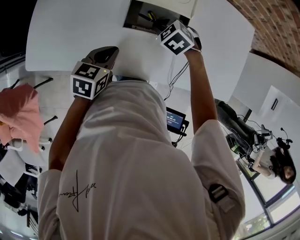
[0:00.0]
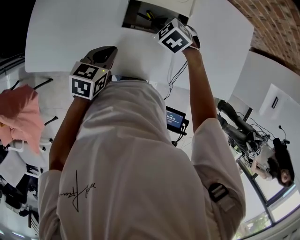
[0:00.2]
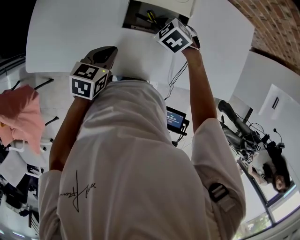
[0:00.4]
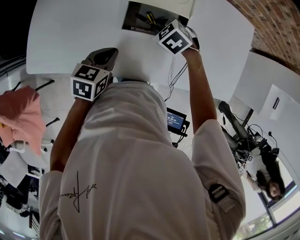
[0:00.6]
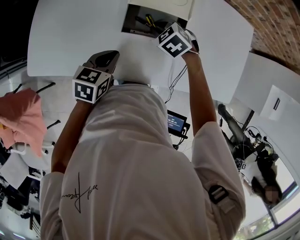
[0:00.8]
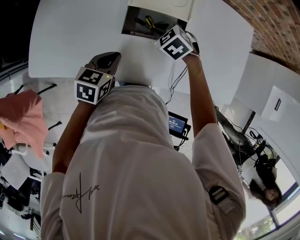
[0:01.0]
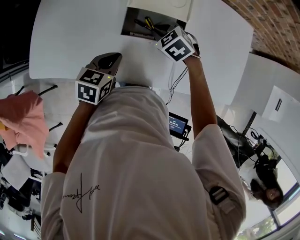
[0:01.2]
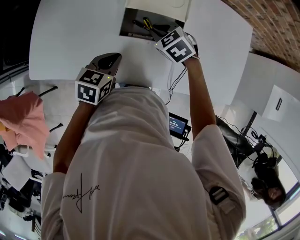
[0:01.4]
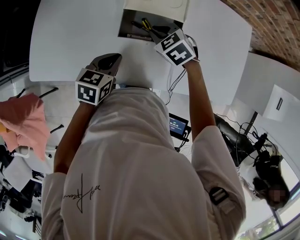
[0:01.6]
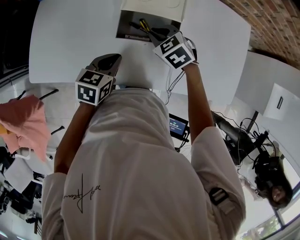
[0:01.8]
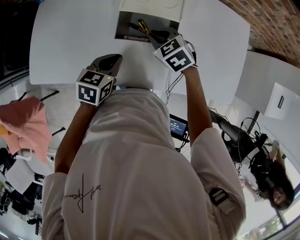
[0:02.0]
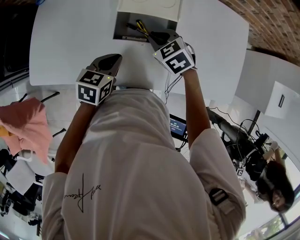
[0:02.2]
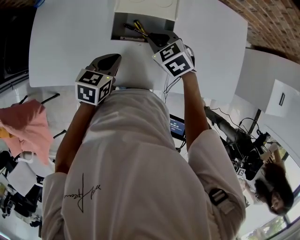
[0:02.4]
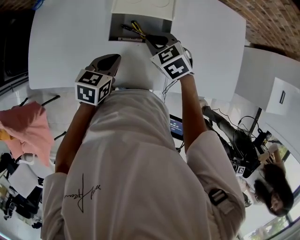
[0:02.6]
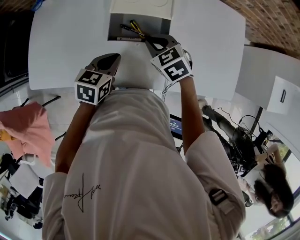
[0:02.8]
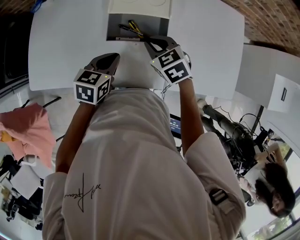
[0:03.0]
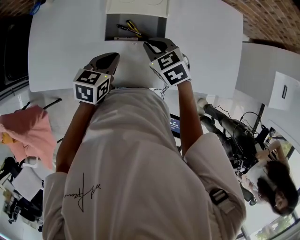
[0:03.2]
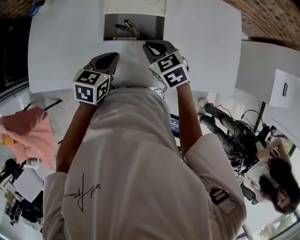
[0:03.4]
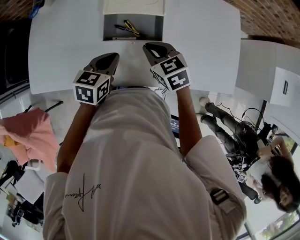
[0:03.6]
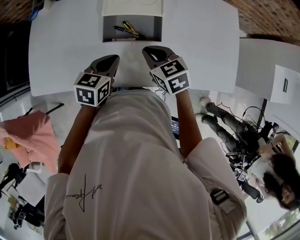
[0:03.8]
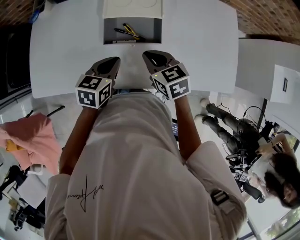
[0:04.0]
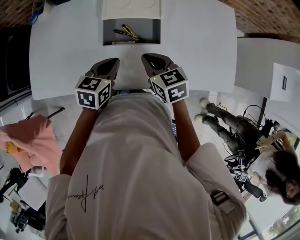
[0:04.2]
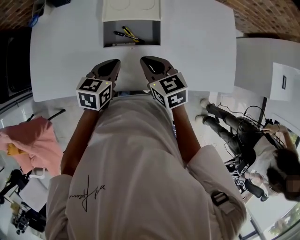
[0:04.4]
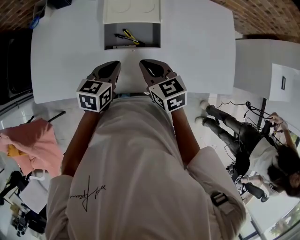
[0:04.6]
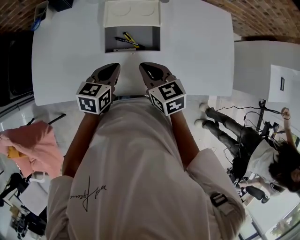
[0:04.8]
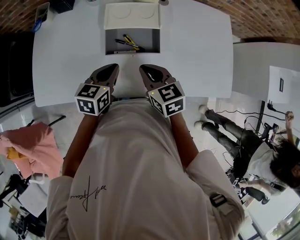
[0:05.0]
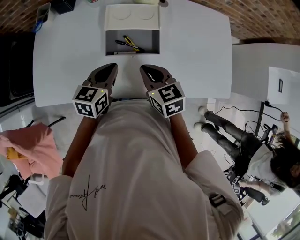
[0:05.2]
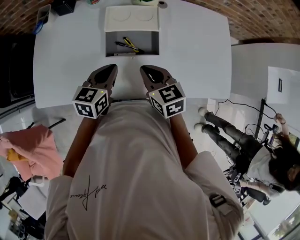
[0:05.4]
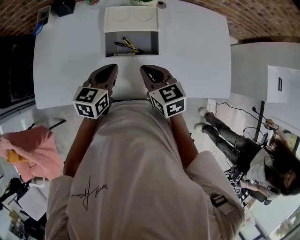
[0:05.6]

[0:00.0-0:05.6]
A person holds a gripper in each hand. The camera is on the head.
0:00.0 to 0:01.4: The grippers move only a little.
0:01.4 to 0:02.8: The right gripper ends up about 5 cm from where it was.
0:02.8 to 0:04.2: The right gripper goes roughly 5 cm backward, and turns by roughly 20 degrees.
0:04.2 to 0:05.6: The grippers make only small movements.

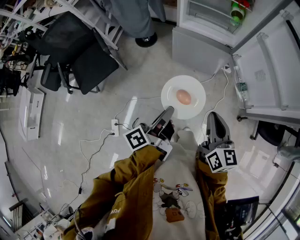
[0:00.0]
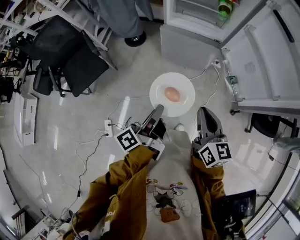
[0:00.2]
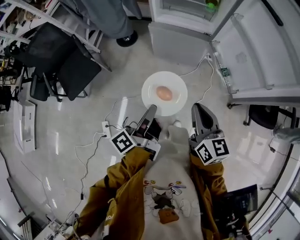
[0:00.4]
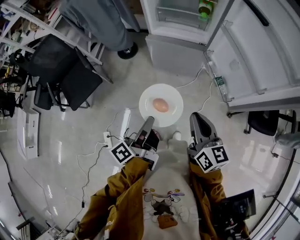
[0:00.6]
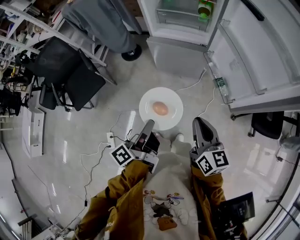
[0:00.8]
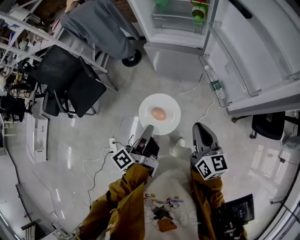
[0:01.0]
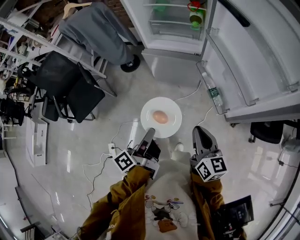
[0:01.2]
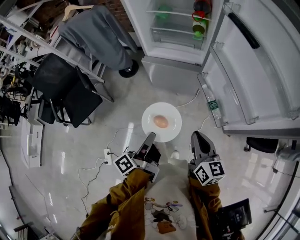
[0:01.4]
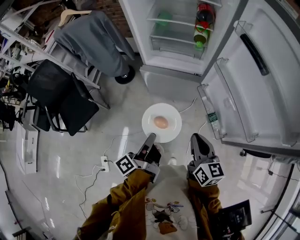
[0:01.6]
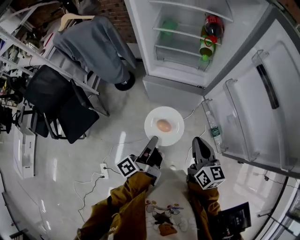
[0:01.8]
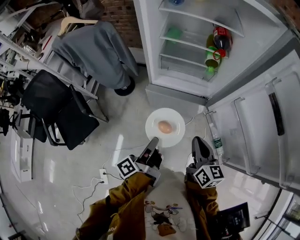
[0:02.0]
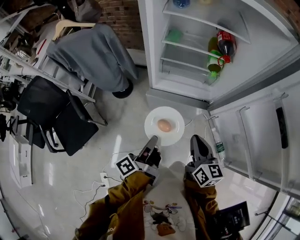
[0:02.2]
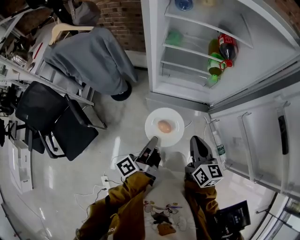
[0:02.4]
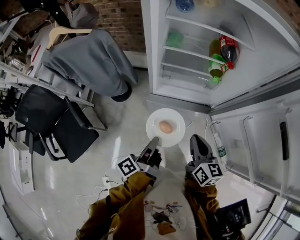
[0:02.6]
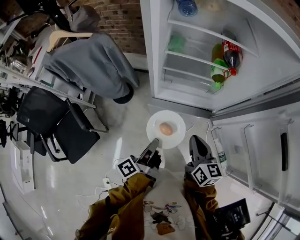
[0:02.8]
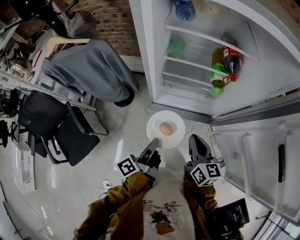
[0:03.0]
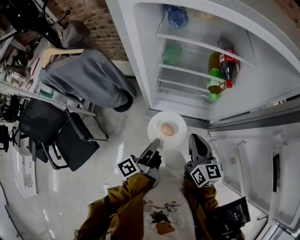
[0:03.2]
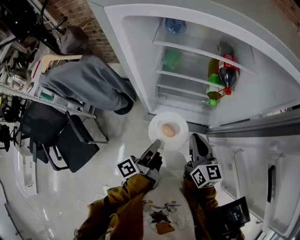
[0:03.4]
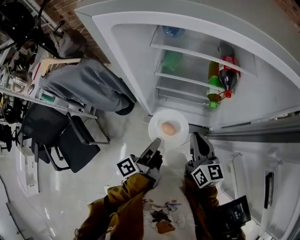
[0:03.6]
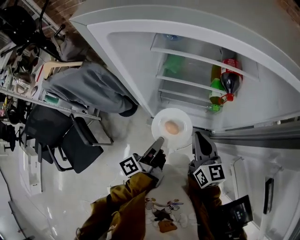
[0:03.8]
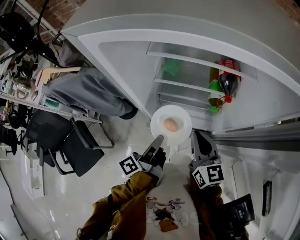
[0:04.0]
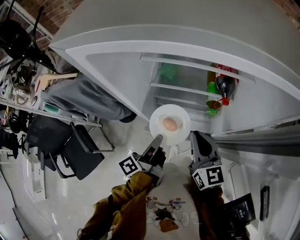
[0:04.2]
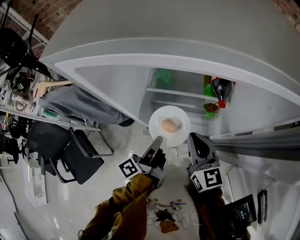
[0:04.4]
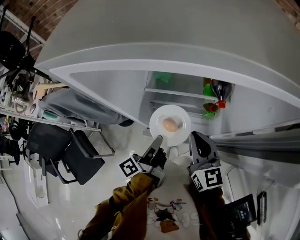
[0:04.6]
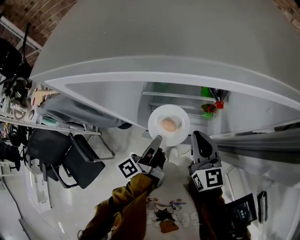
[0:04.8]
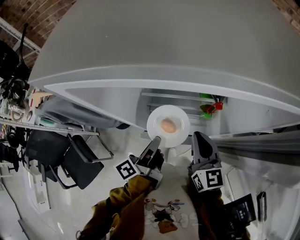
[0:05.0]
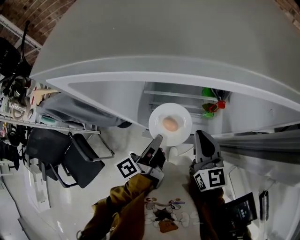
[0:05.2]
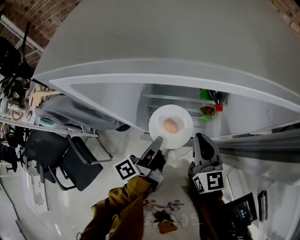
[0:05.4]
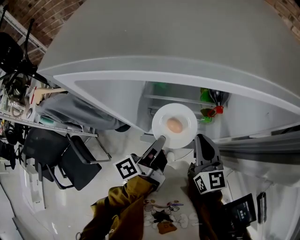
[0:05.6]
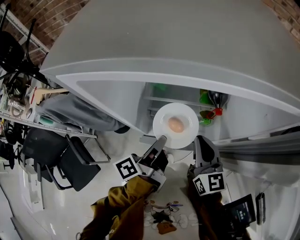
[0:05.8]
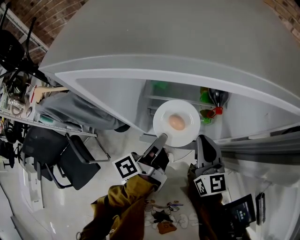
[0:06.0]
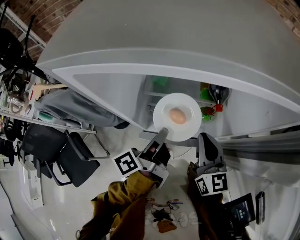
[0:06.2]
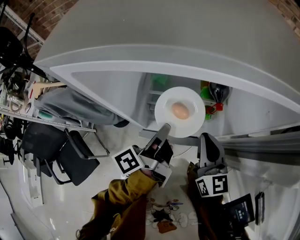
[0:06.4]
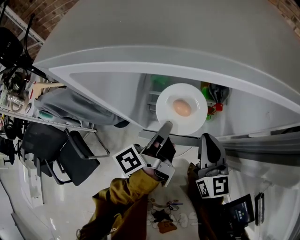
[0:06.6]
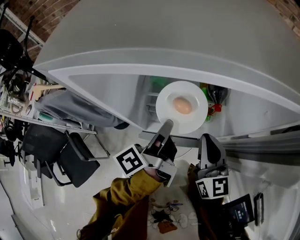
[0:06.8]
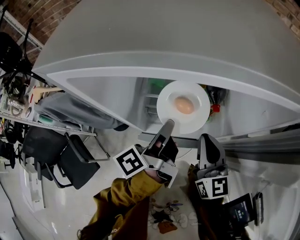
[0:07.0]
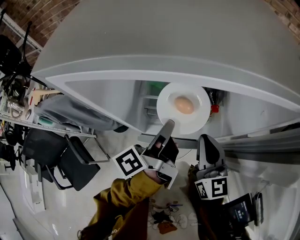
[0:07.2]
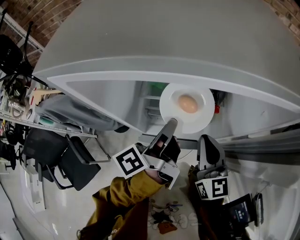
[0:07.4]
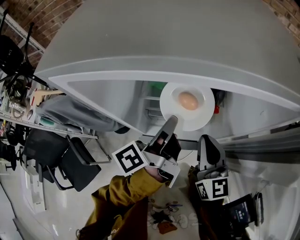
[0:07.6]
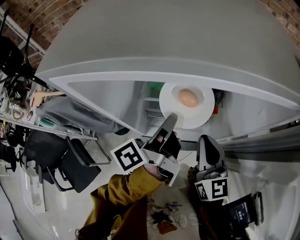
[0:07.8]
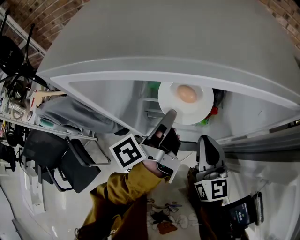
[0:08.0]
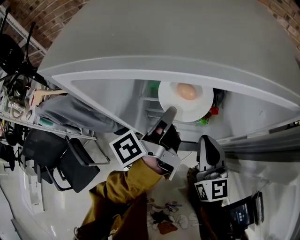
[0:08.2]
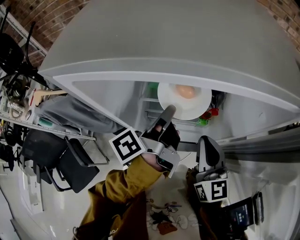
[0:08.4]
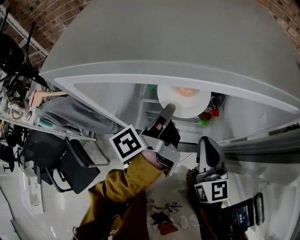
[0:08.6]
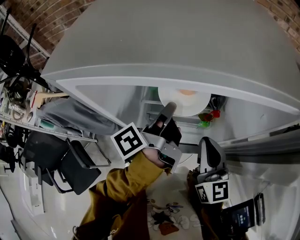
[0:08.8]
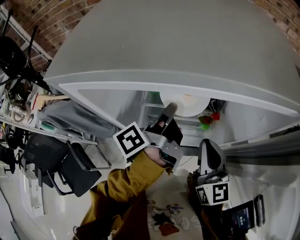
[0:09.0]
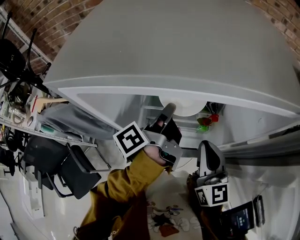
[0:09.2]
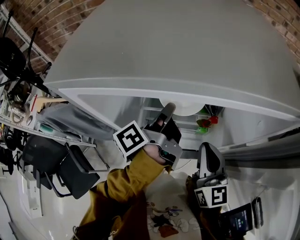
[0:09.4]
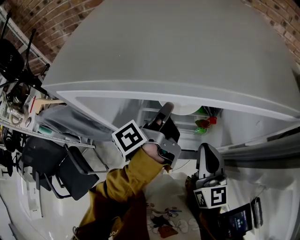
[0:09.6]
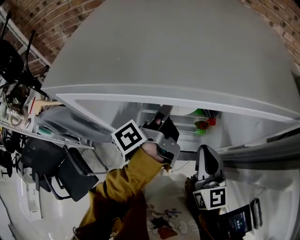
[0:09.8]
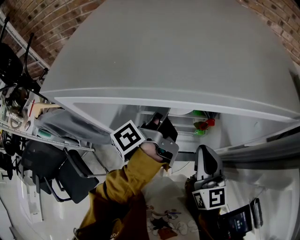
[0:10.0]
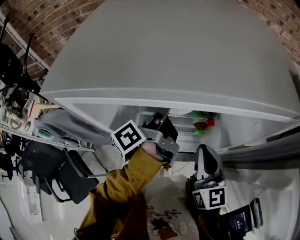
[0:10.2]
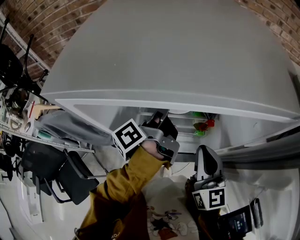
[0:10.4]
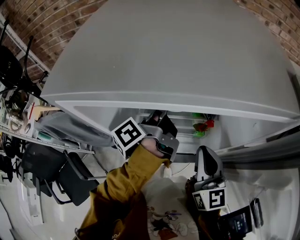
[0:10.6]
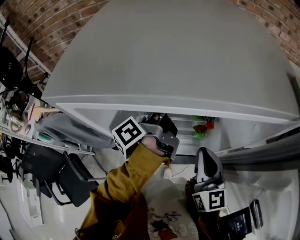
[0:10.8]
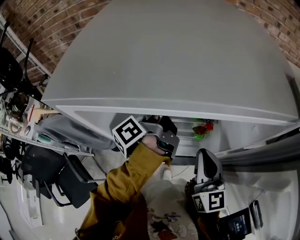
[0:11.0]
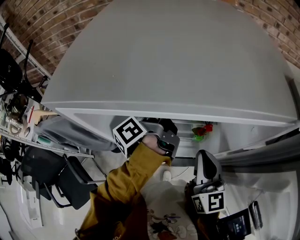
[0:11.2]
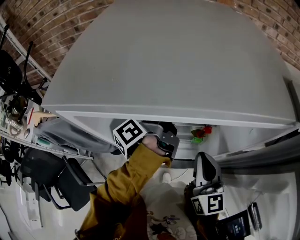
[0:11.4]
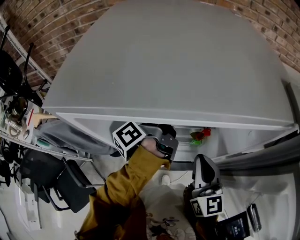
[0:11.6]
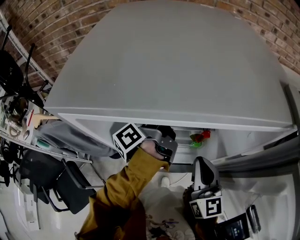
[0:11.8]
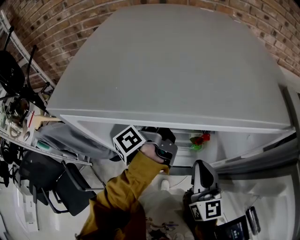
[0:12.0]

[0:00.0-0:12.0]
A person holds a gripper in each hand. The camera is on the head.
0:00.0 to 0:01.6: The right gripper ends up roughly 15 cm from where it was.
0:01.6 to 0:03.0: The right gripper shifts by approximately 30 cm.
0:03.0 to 0:04.4: The right gripper changes place by roughly 15 cm.

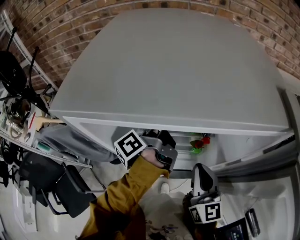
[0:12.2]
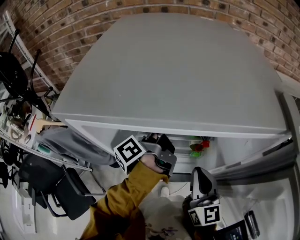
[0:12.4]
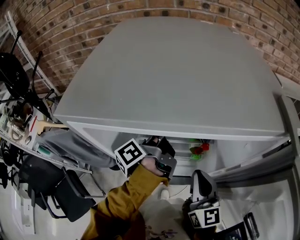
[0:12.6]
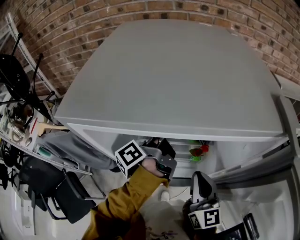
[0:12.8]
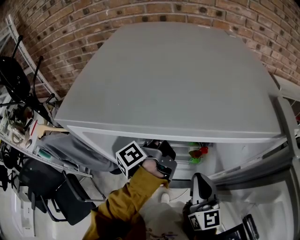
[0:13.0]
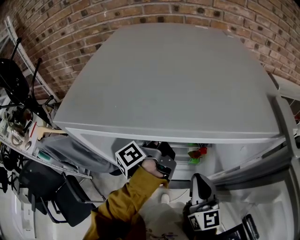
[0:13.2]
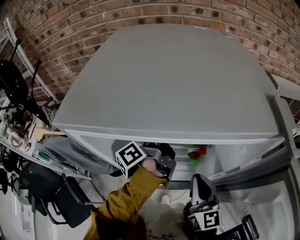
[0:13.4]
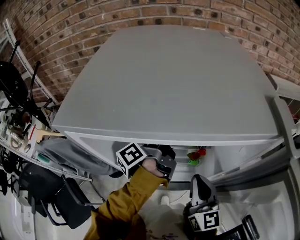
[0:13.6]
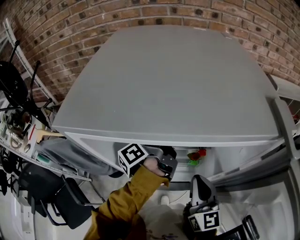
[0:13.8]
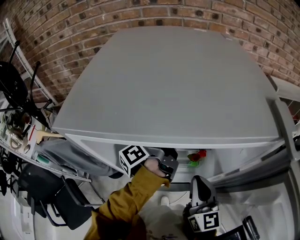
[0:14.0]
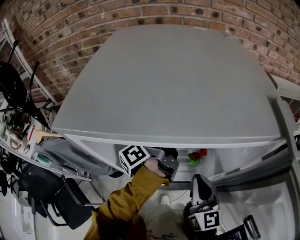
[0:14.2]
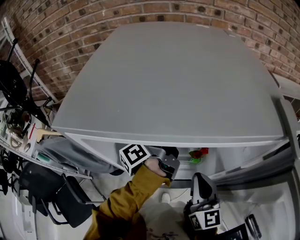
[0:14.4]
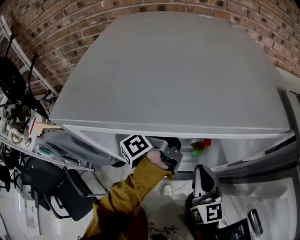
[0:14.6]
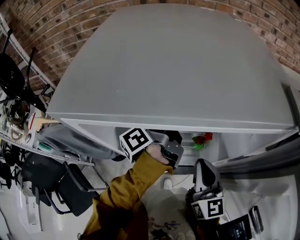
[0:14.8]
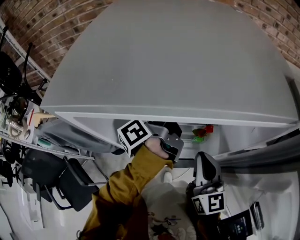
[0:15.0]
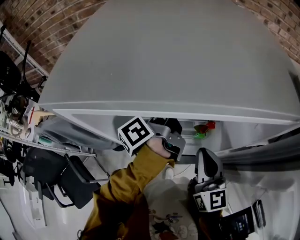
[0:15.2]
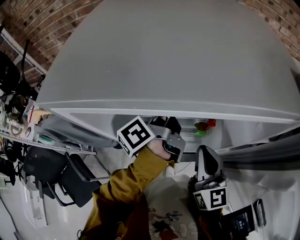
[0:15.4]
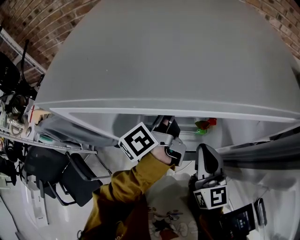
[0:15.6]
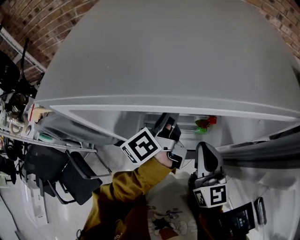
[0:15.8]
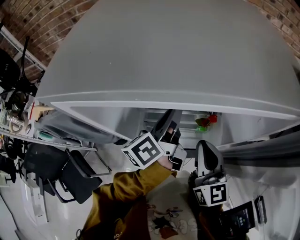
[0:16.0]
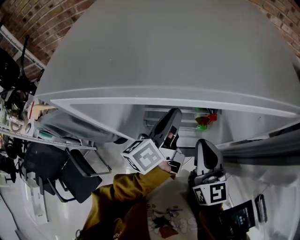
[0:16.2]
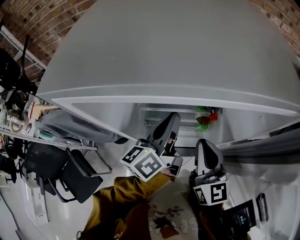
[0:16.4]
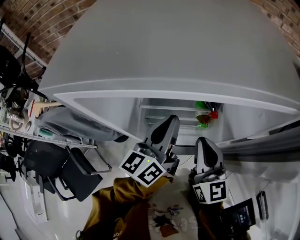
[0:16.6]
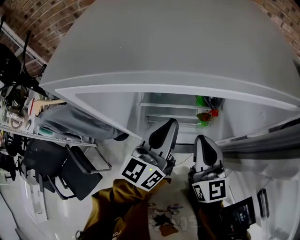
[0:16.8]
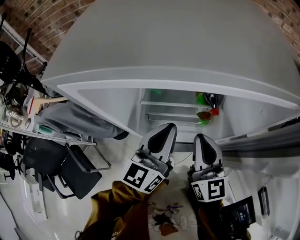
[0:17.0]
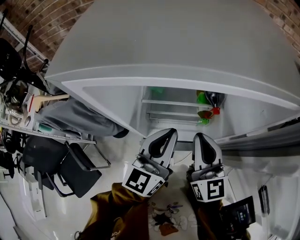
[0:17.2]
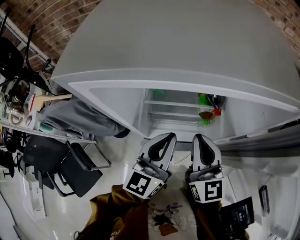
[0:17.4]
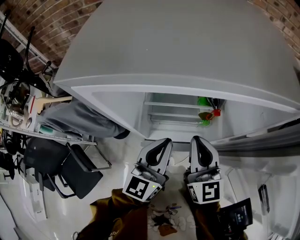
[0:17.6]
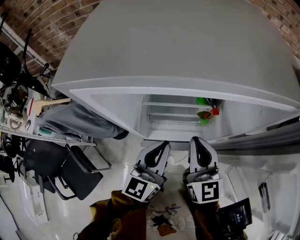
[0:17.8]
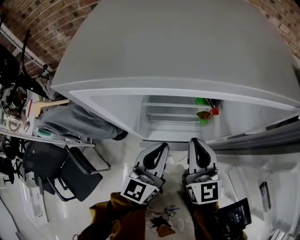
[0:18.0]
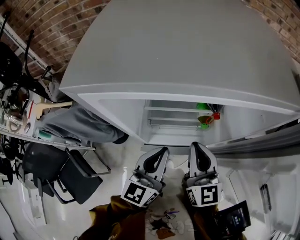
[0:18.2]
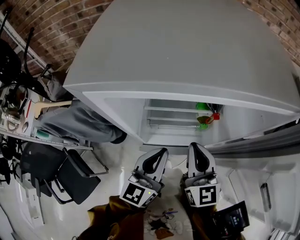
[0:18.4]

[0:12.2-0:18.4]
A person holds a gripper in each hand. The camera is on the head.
0:16.8 to 0:18.4: The right gripper ends up about 5 cm from where it was.
